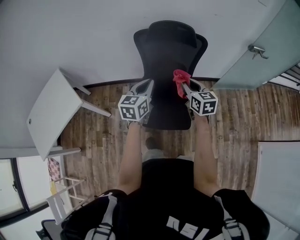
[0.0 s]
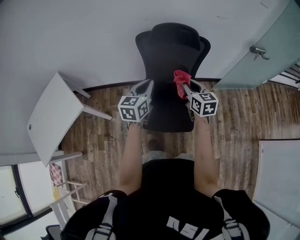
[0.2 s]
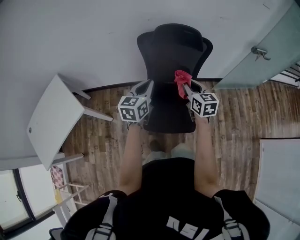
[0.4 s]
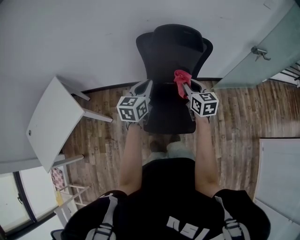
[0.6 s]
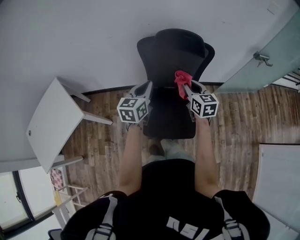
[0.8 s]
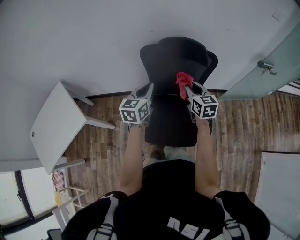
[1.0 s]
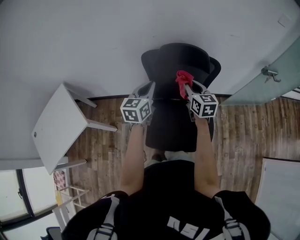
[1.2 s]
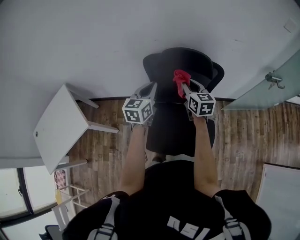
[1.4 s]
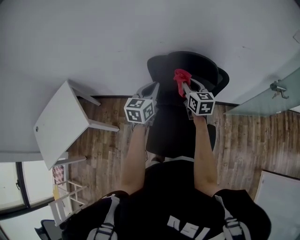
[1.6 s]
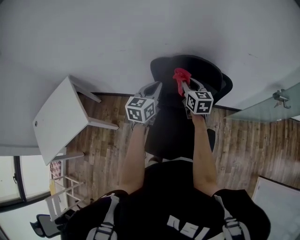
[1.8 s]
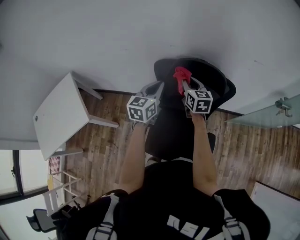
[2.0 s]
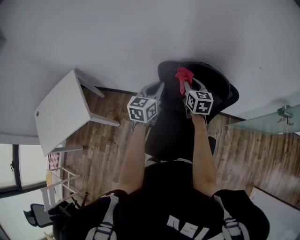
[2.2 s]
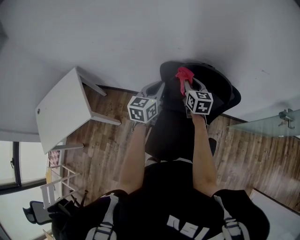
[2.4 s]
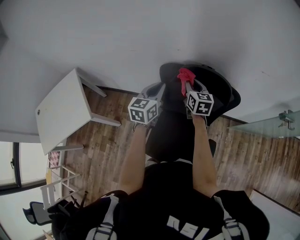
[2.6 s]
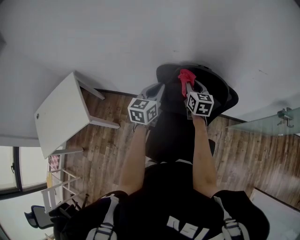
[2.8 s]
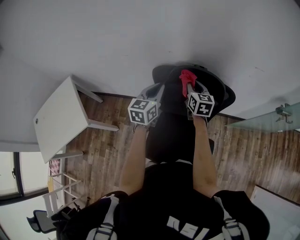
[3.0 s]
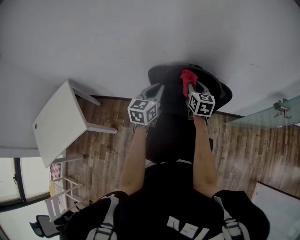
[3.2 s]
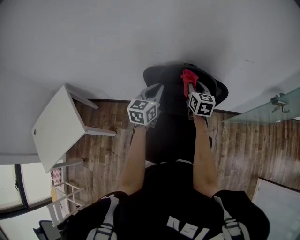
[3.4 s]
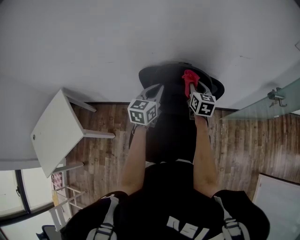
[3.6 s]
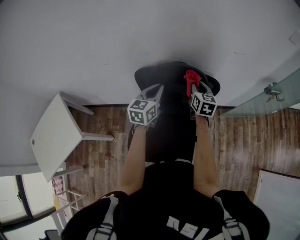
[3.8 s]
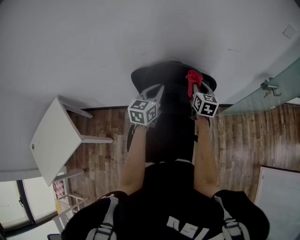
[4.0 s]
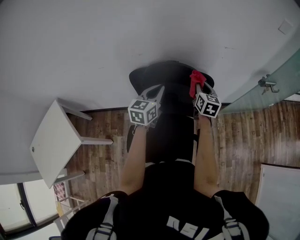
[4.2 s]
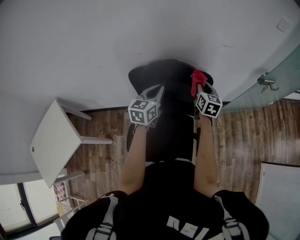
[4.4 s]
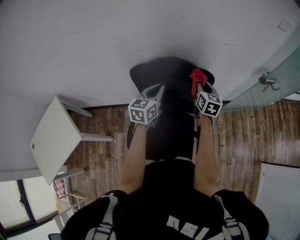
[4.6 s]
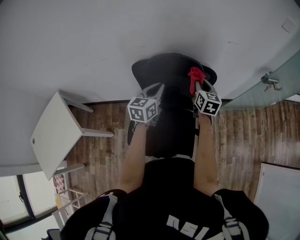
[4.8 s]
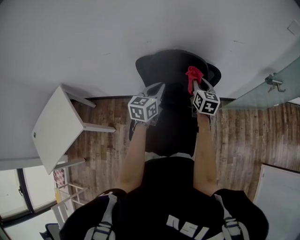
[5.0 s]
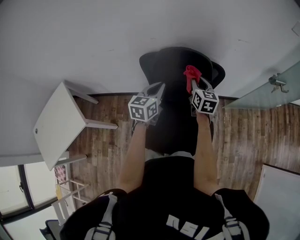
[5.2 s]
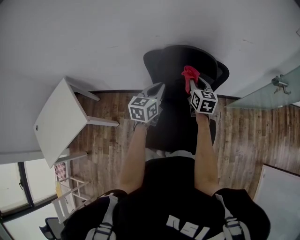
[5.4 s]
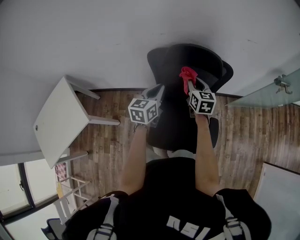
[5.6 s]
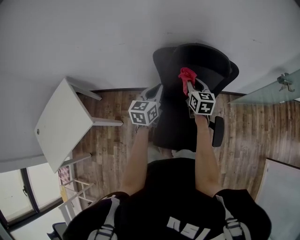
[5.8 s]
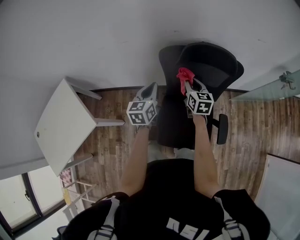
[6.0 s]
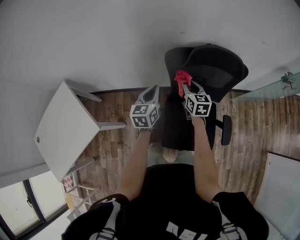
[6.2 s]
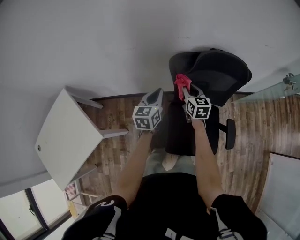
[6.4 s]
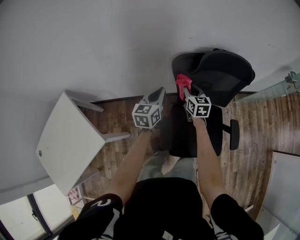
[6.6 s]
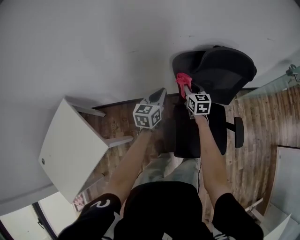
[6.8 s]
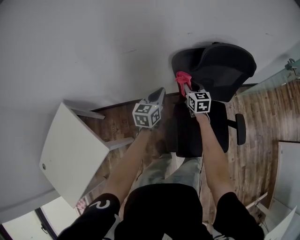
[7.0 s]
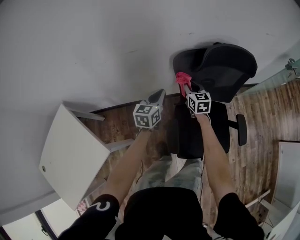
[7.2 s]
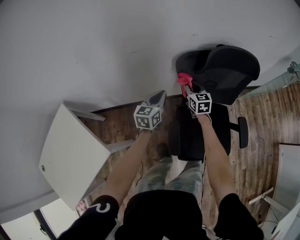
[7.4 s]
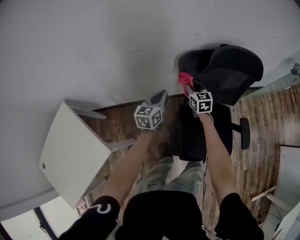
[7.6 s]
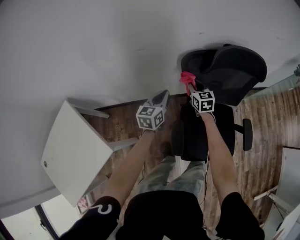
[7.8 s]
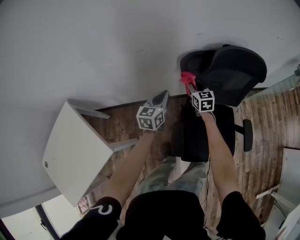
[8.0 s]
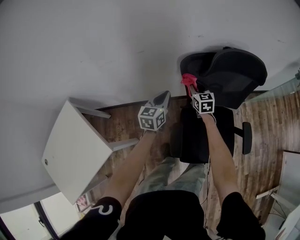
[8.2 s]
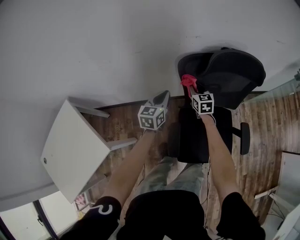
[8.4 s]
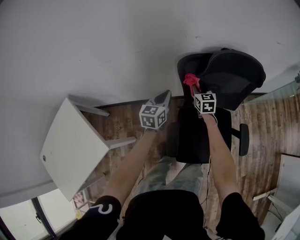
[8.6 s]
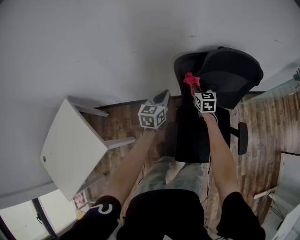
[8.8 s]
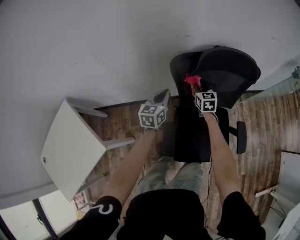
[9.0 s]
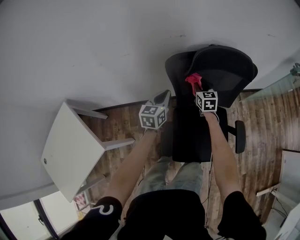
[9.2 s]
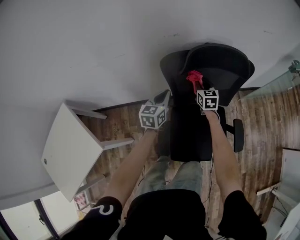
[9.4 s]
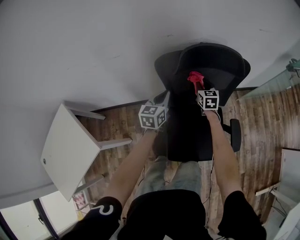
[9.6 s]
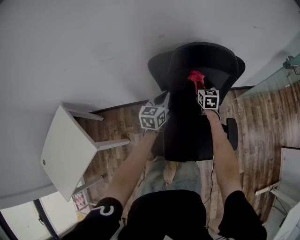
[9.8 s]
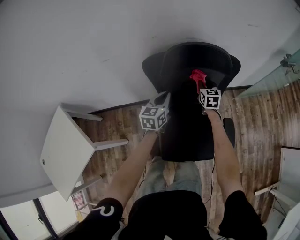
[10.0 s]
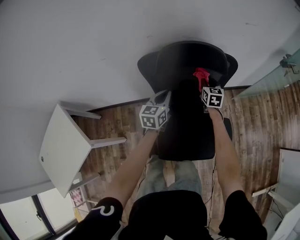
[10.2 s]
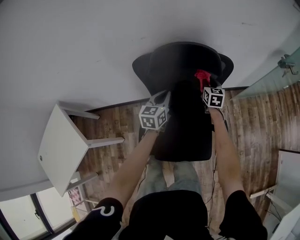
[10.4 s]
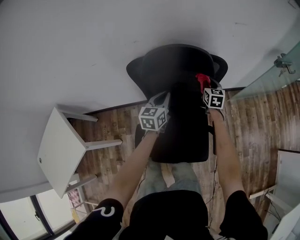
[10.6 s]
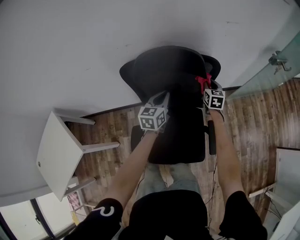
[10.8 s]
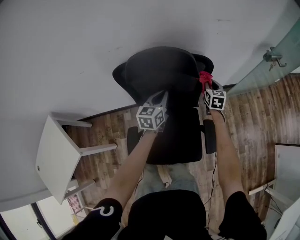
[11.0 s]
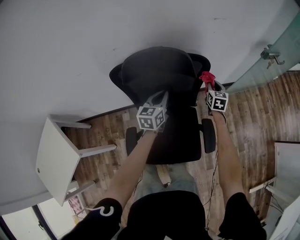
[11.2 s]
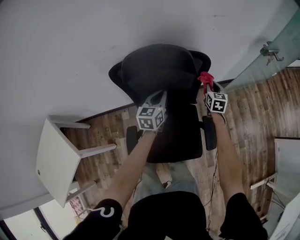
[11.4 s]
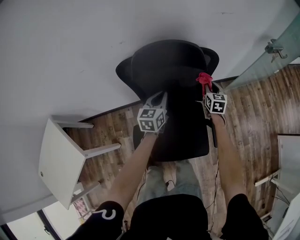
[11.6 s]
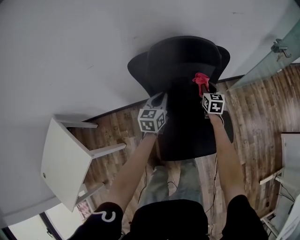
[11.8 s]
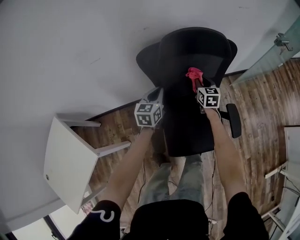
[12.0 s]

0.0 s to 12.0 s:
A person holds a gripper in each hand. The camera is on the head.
0.0 to 1.6 s: The two grippers go some 25 cm forward.
1.6 to 3.0 s: The two grippers go roughly 10 cm forward.
3.0 to 4.4 s: The right gripper moves to the right, about 20 cm, and changes its angle by about 20 degrees. The left gripper shifts about 10 cm to the right.
4.4 to 6.0 s: The two grippers go roughly 25 cm to the left.
6.0 to 7.6 s: The grippers both shift downward, to the left and forward by roughly 20 cm.
7.6 to 9.0 s: The two grippers go approximately 5 cm to the right.
9.0 to 10.4 s: The grippers both shift to the right by about 20 cm.
10.4 to 12.0 s: The left gripper travels to the left by approximately 10 cm. The right gripper is displaced backward by some 10 cm, and reaches approximately 15 cm to the right, then returns.

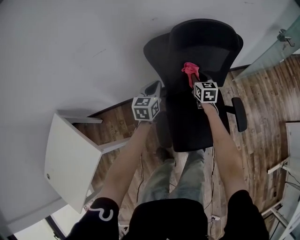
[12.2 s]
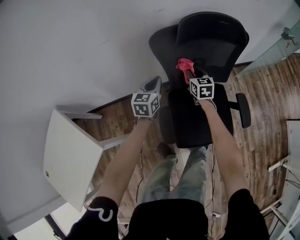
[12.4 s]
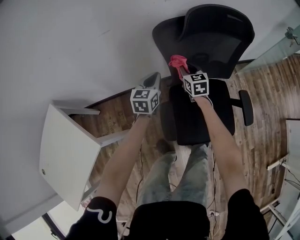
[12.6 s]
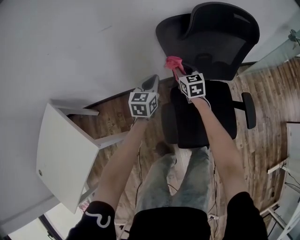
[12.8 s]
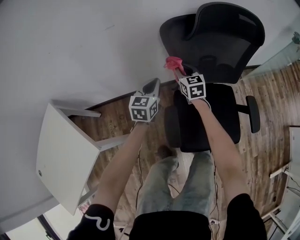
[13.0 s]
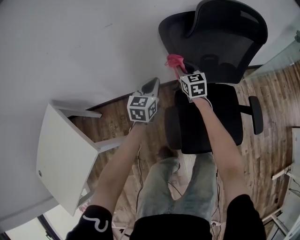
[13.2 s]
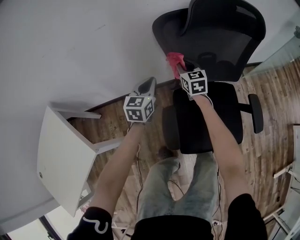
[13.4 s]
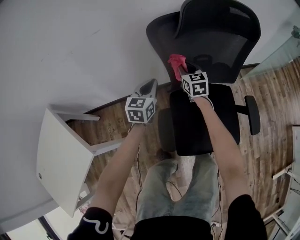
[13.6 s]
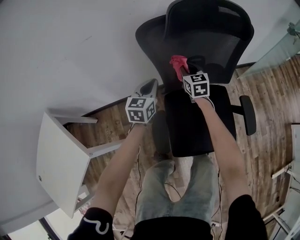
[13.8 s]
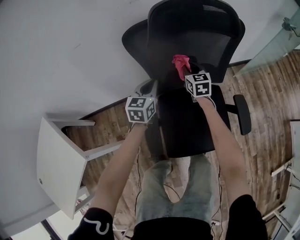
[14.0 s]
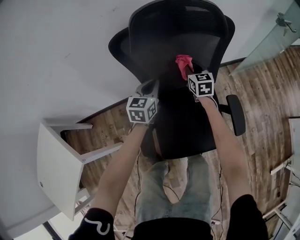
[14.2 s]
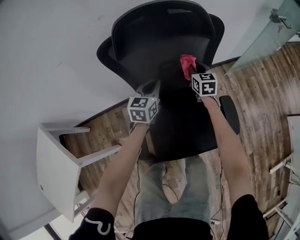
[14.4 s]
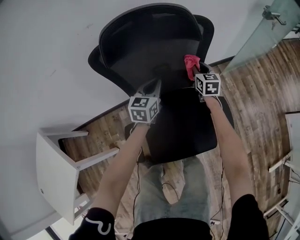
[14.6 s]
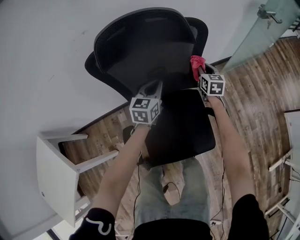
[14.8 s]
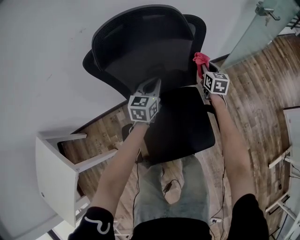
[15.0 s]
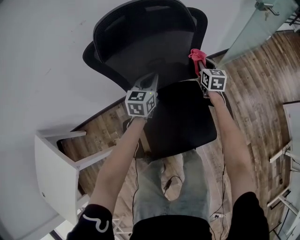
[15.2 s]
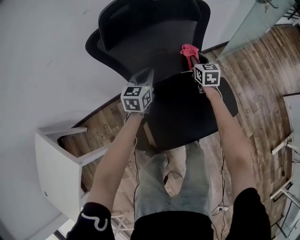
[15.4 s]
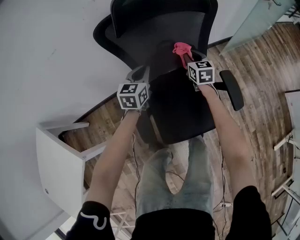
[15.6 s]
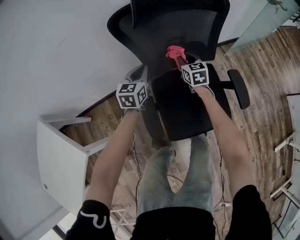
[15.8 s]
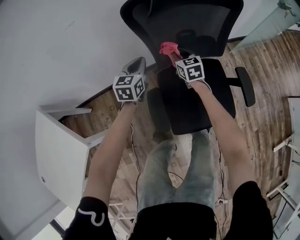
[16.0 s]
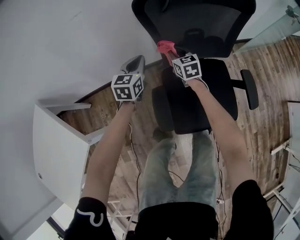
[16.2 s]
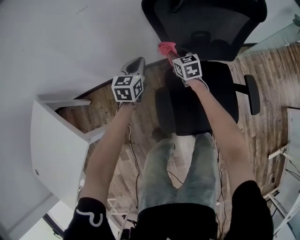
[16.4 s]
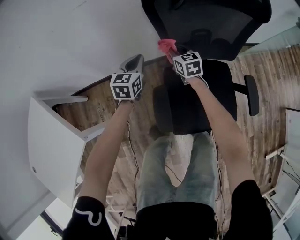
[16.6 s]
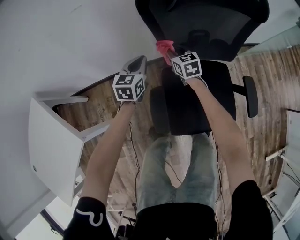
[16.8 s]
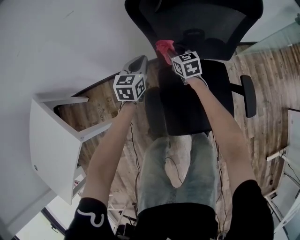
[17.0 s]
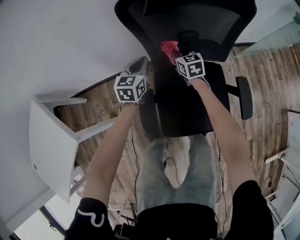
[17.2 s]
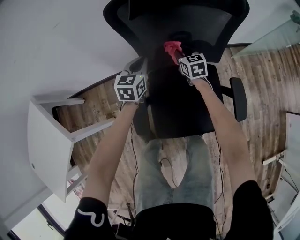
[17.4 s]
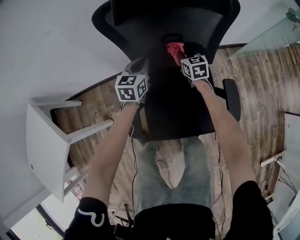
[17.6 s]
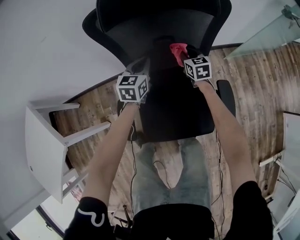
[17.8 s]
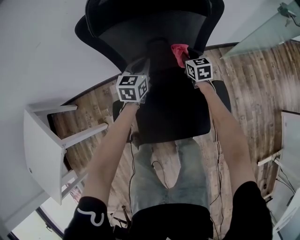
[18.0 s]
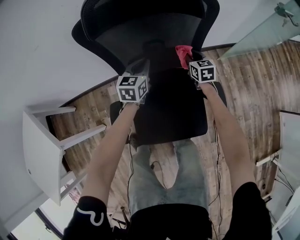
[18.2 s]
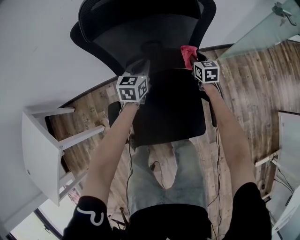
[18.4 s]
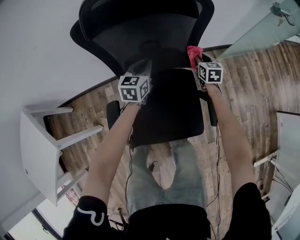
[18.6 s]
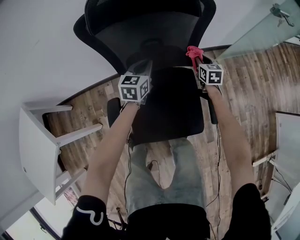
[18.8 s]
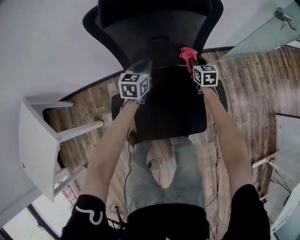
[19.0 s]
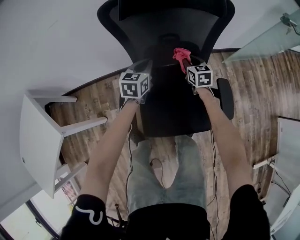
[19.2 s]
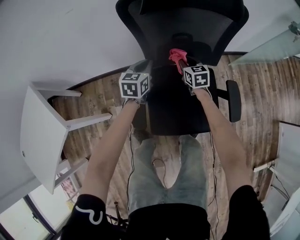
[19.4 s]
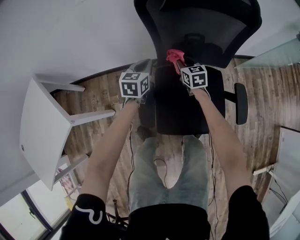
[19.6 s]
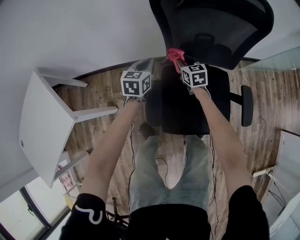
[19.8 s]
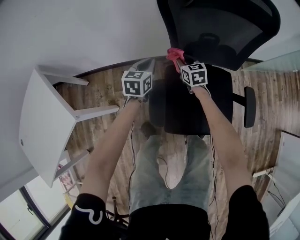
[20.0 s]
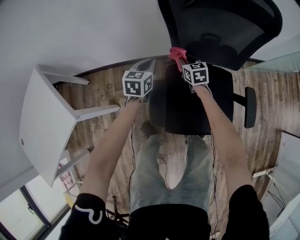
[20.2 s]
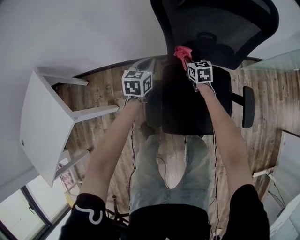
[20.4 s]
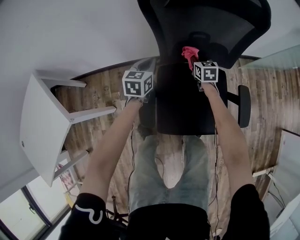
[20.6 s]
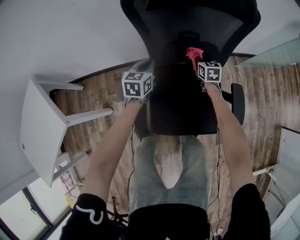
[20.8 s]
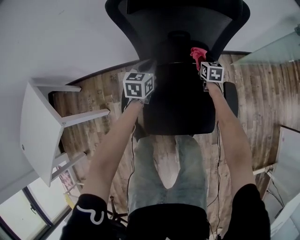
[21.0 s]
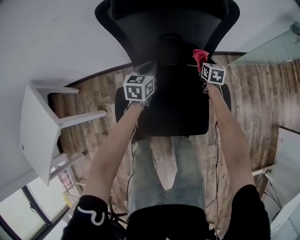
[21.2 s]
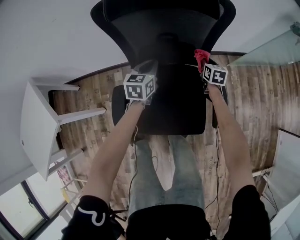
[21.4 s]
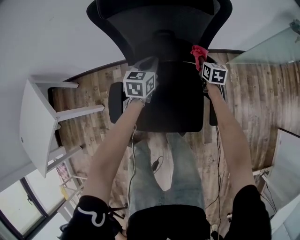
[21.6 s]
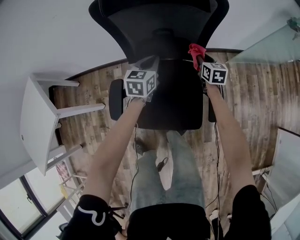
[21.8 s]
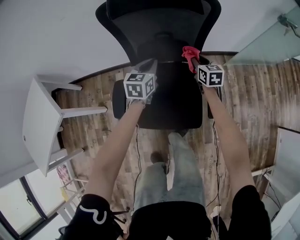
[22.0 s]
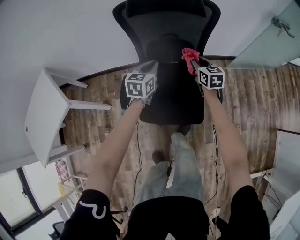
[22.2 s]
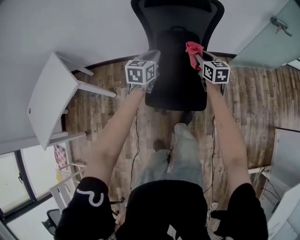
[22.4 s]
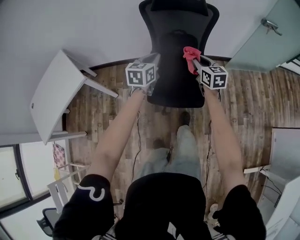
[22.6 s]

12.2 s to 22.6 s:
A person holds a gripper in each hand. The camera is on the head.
12.2 to 13.6 s: The left gripper is displaced downward by about 10 cm. The right gripper heads to the left and downward, covering roughly 15 cm.
13.6 to 15.2 s: The grippers both shift to the right by roughly 30 cm. The right gripper swivels approximately 20 degrees.
15.2 to 16.6 s: The grippers both shift to the left by about 35 cm. The right gripper rotates some 30 degrees.
16.6 to 18.2 s: Both grippers travel together to the right, roughly 30 cm.
18.2 to 19.6 s: The right gripper moves to the left, roughly 25 cm. The left gripper travels to the left and backward by some 20 cm.
19.6 to 21.2 s: The right gripper shifts about 25 cm to the right; the left gripper heads to the right, covering approximately 15 cm.
21.2 to 22.6 s: The two grippers go approximately 40 cm backward and upward. The right gripper swivels some 30 degrees.

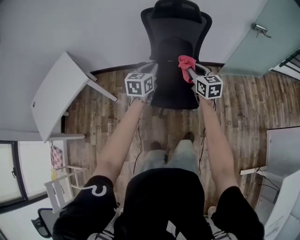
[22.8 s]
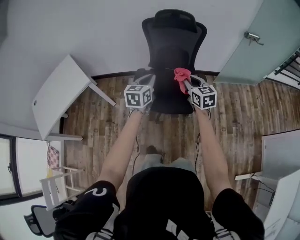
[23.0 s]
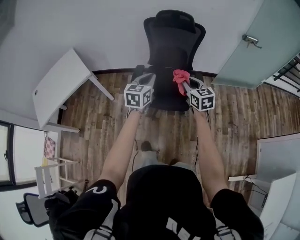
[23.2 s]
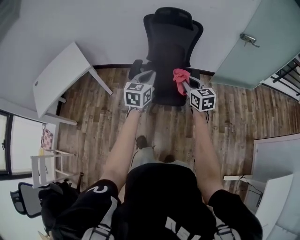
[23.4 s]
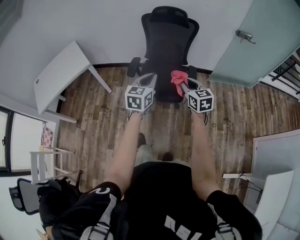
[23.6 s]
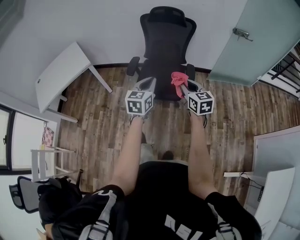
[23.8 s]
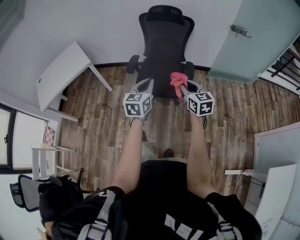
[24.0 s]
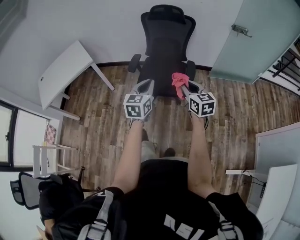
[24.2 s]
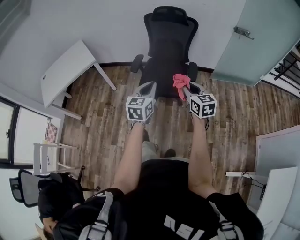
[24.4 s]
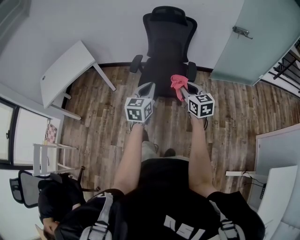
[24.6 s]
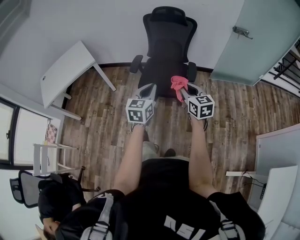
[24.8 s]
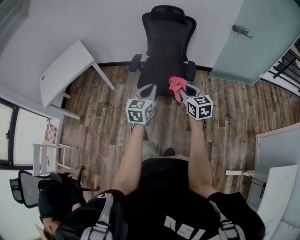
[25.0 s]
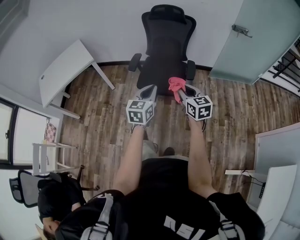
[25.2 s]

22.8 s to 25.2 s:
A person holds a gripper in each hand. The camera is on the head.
22.8 to 24.0 s: The grippers both shift backward by roughly 30 cm.
24.0 to 25.2 s: The left gripper moves backward, approximately 5 cm.
